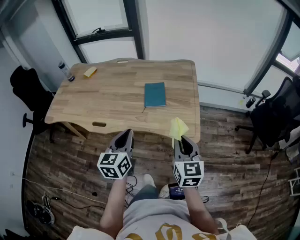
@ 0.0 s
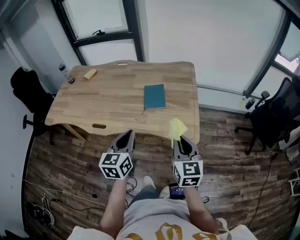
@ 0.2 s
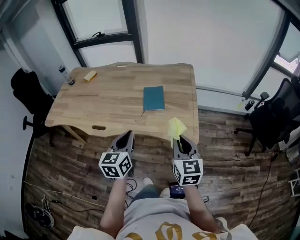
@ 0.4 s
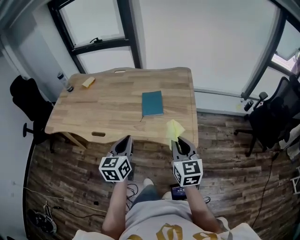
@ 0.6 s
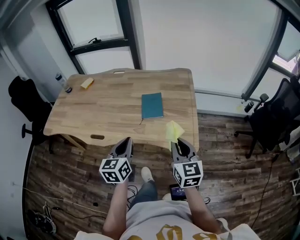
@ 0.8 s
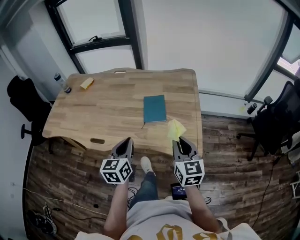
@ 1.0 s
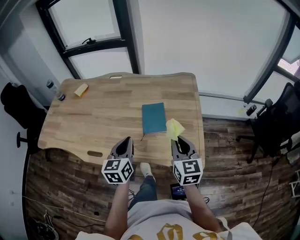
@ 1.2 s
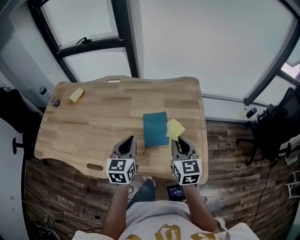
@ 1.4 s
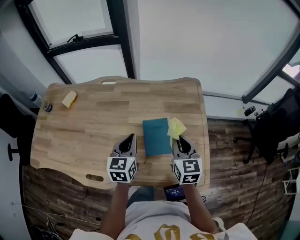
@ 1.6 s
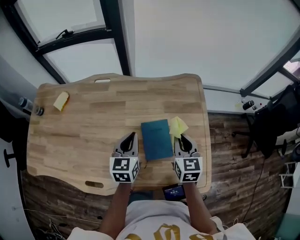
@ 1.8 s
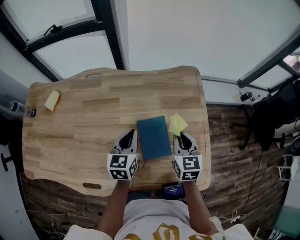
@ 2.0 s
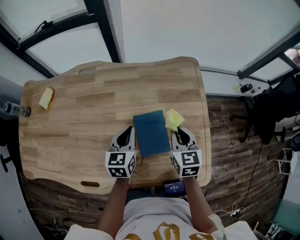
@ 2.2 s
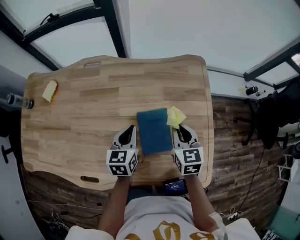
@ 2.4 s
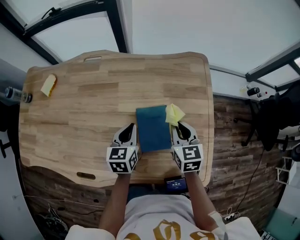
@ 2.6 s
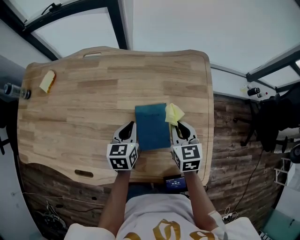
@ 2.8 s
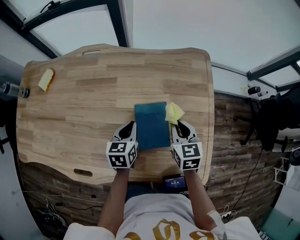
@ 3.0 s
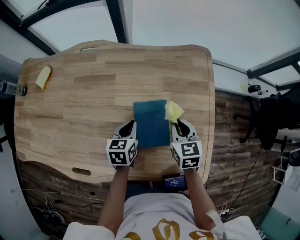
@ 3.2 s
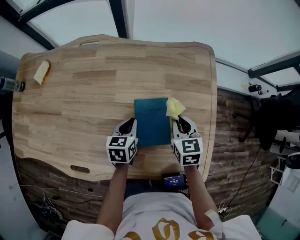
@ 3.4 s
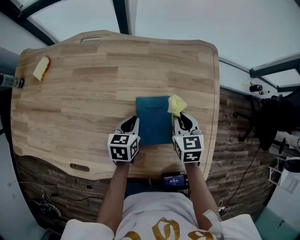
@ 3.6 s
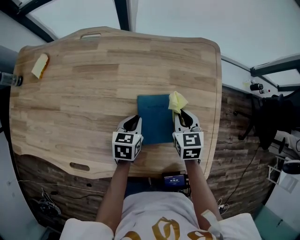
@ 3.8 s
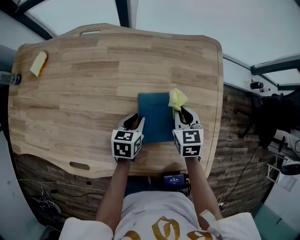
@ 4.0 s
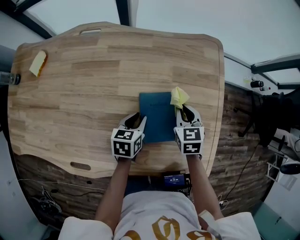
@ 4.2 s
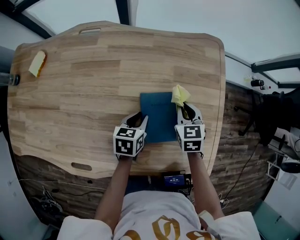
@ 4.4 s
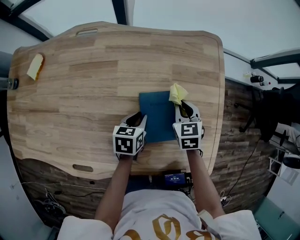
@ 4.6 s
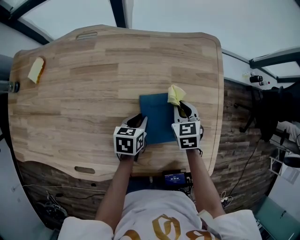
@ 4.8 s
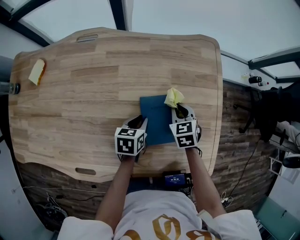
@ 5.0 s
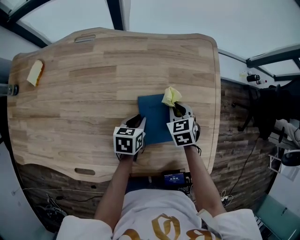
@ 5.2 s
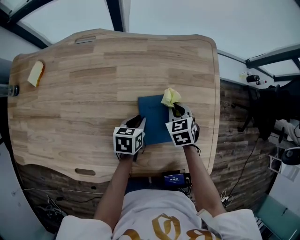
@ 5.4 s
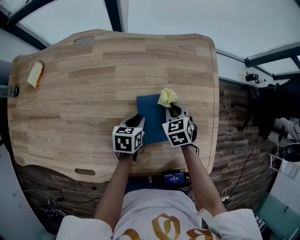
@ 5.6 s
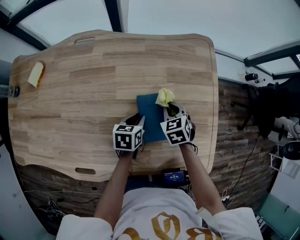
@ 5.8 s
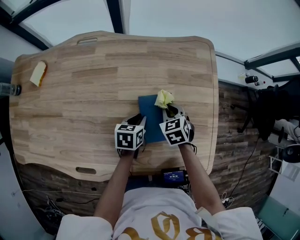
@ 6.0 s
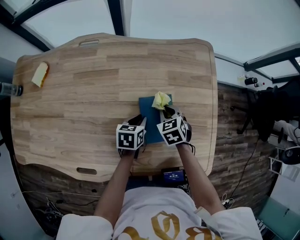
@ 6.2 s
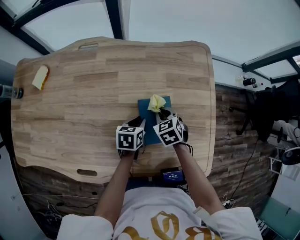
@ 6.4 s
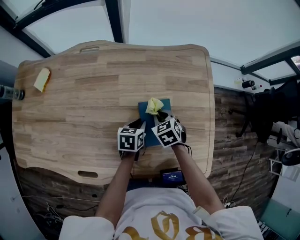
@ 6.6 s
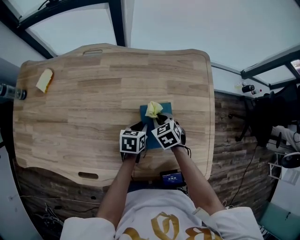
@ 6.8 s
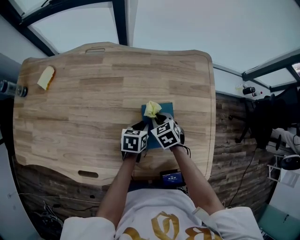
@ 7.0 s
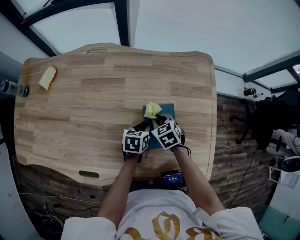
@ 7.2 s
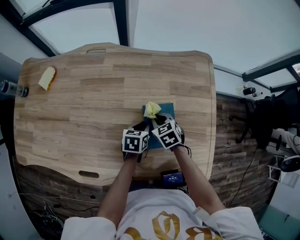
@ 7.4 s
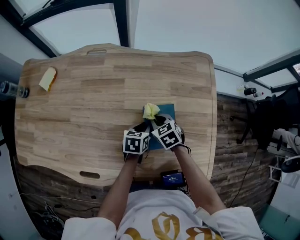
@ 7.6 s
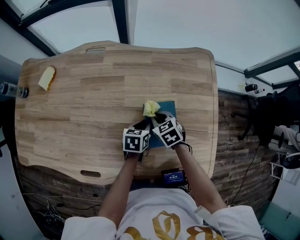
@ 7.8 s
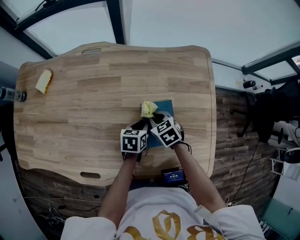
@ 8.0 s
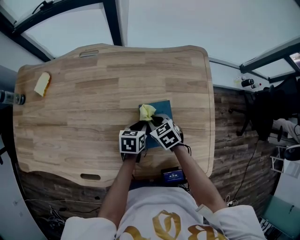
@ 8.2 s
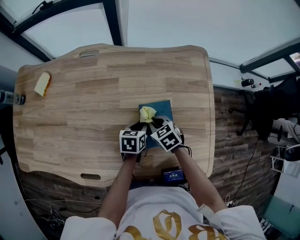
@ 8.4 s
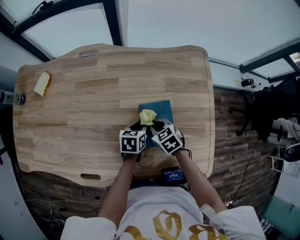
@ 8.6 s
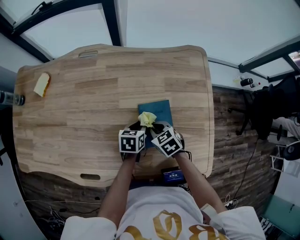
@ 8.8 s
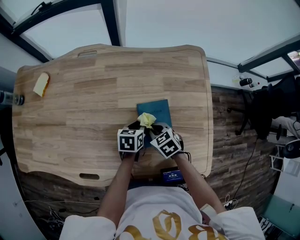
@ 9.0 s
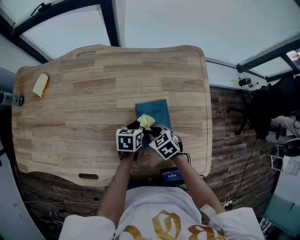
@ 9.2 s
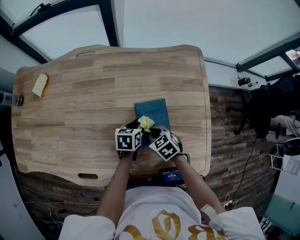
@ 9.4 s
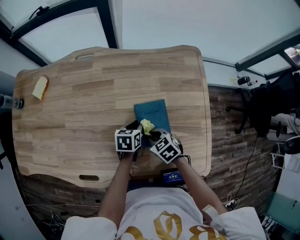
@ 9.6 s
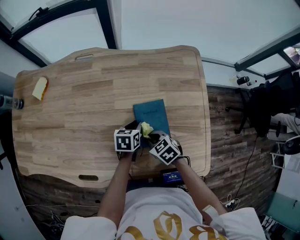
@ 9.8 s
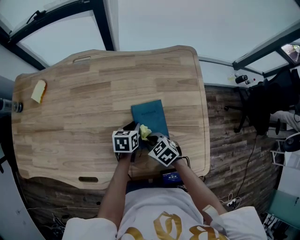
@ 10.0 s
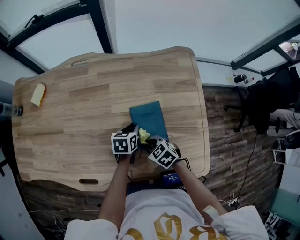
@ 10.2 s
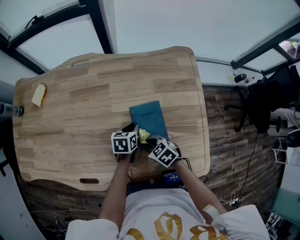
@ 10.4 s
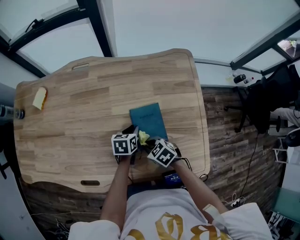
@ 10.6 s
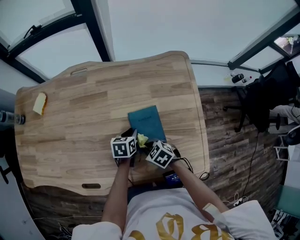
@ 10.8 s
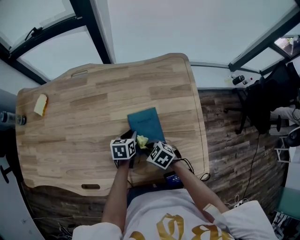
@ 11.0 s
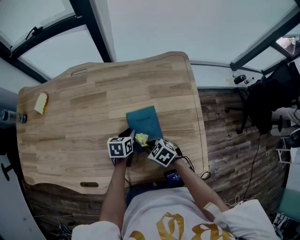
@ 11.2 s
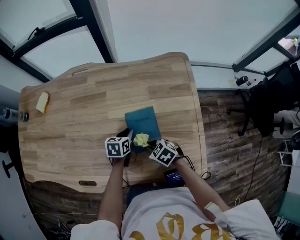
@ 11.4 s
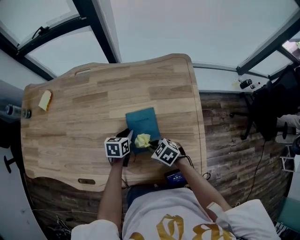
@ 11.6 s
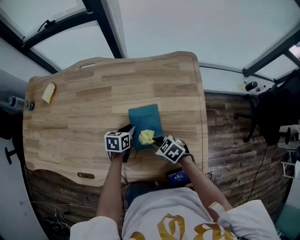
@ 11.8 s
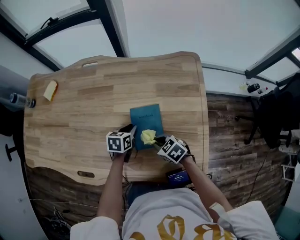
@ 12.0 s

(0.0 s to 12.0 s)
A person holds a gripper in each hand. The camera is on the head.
0.0 s - 1.6 s: Both grippers move forward, approximately 35 cm.
1.6 s - 3.0 s: The two grippers go some 15 cm downward and forward. The left gripper rotates approximately 20 degrees.
3.0 s - 4.4 s: The grippers both shift downward by some 5 cm. The left gripper opens up.
4.4 s - 6.0 s: The right gripper moves roughly 5 cm.
6.0 s - 7.6 s: The right gripper heads to the left, covering about 5 cm.
7.6 s - 9.0 s: The right gripper shifts roughly 5 cm backward.
9.0 s - 10.4 s: The right gripper travels backward by approximately 5 cm.
10.4 s - 12.0 s: The right gripper moves to the right, approximately 5 cm.

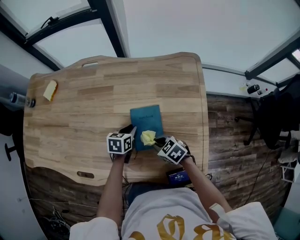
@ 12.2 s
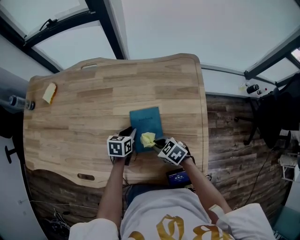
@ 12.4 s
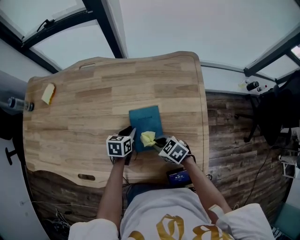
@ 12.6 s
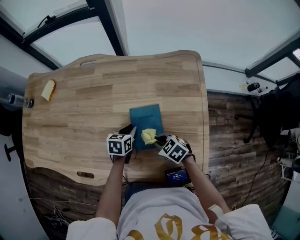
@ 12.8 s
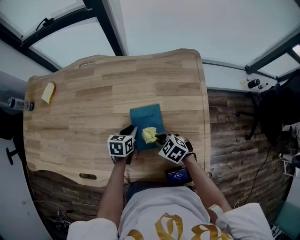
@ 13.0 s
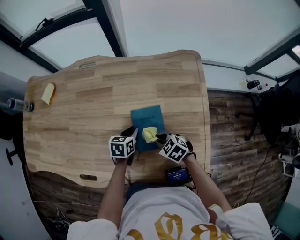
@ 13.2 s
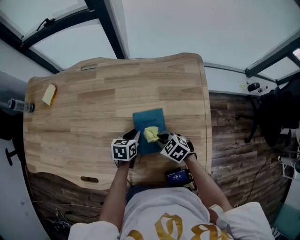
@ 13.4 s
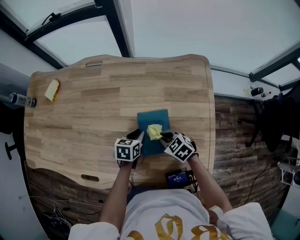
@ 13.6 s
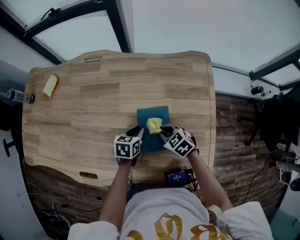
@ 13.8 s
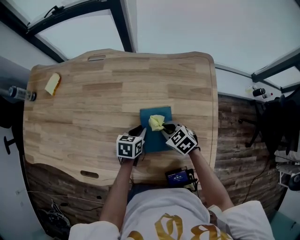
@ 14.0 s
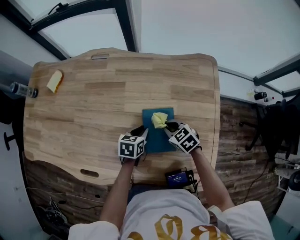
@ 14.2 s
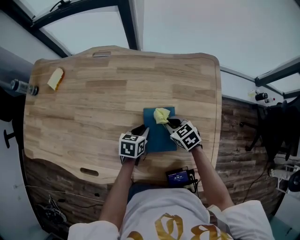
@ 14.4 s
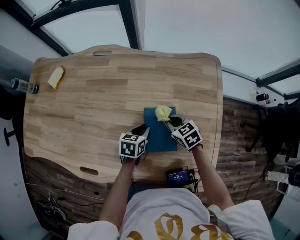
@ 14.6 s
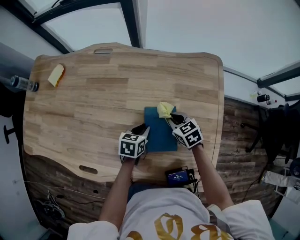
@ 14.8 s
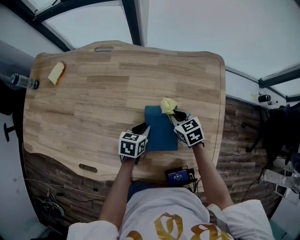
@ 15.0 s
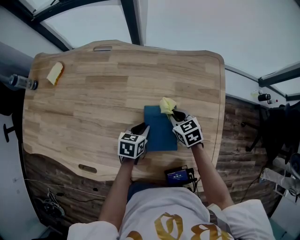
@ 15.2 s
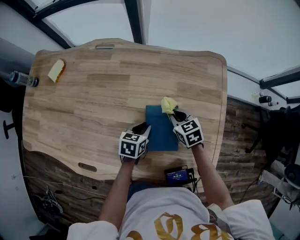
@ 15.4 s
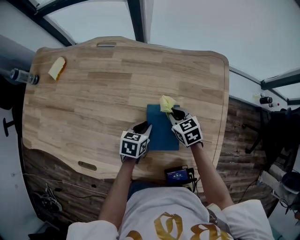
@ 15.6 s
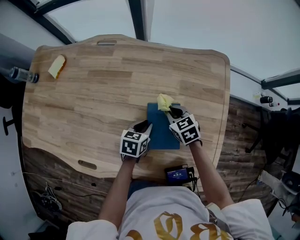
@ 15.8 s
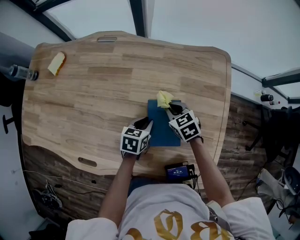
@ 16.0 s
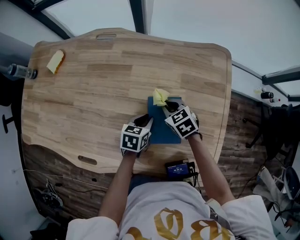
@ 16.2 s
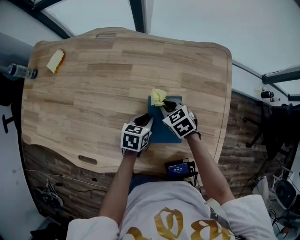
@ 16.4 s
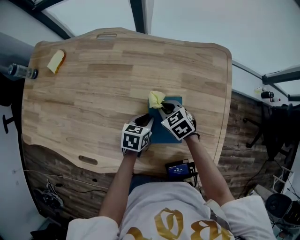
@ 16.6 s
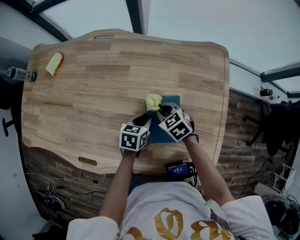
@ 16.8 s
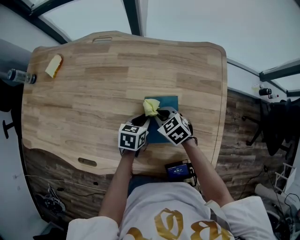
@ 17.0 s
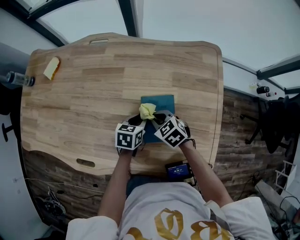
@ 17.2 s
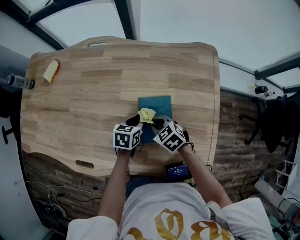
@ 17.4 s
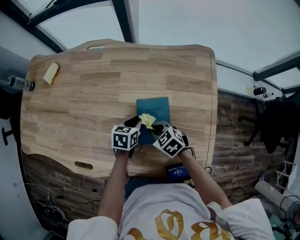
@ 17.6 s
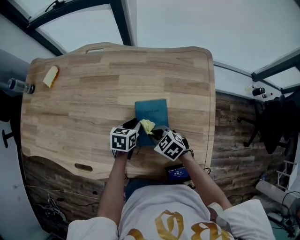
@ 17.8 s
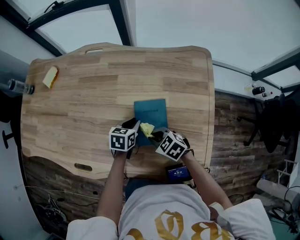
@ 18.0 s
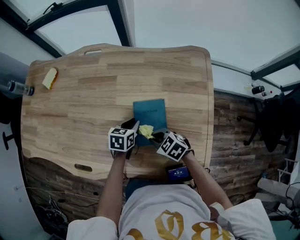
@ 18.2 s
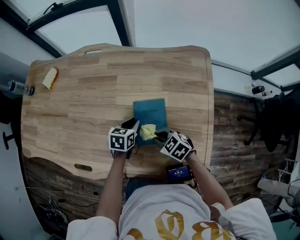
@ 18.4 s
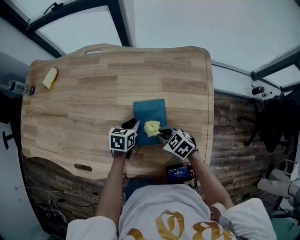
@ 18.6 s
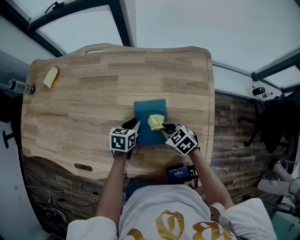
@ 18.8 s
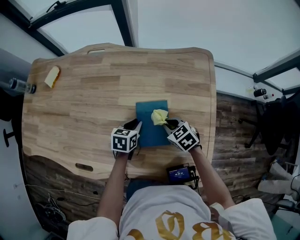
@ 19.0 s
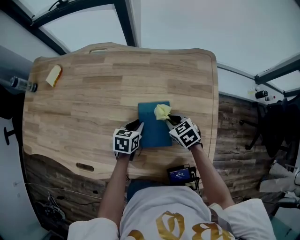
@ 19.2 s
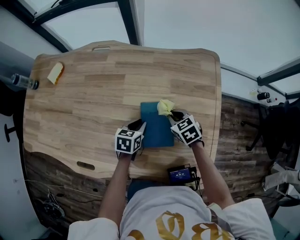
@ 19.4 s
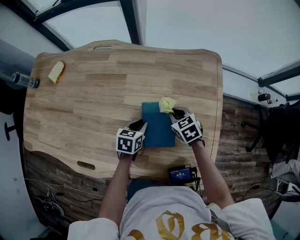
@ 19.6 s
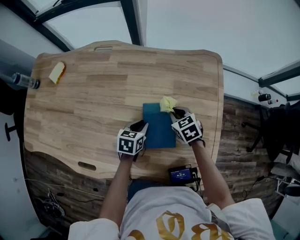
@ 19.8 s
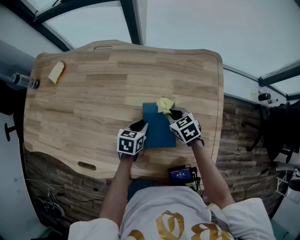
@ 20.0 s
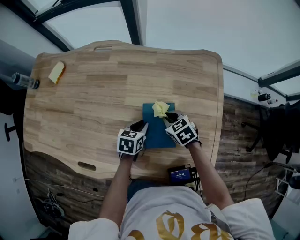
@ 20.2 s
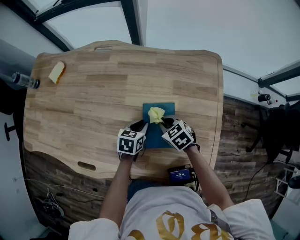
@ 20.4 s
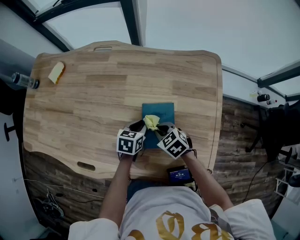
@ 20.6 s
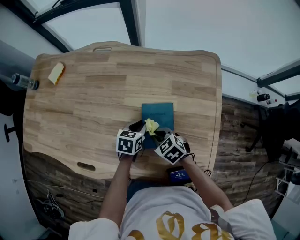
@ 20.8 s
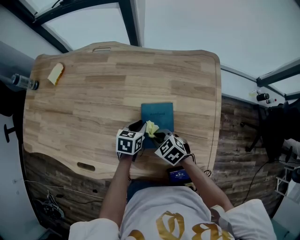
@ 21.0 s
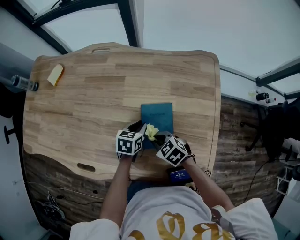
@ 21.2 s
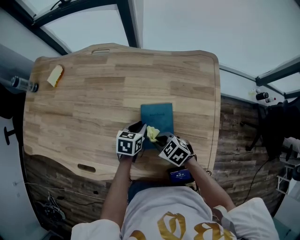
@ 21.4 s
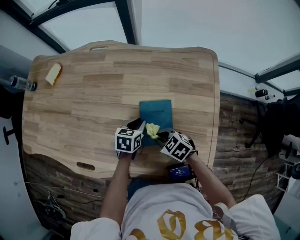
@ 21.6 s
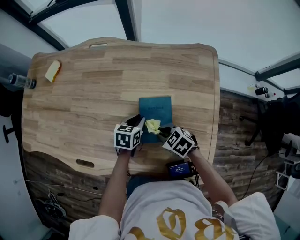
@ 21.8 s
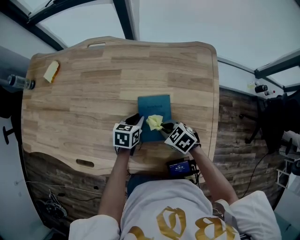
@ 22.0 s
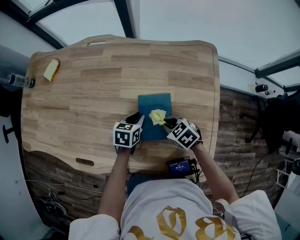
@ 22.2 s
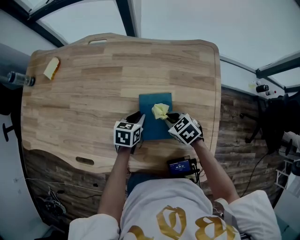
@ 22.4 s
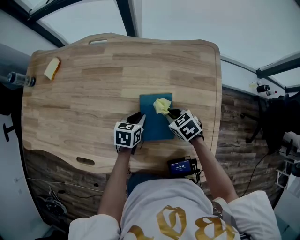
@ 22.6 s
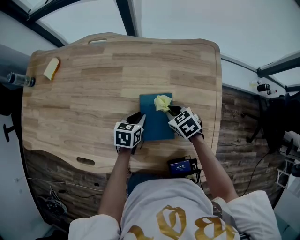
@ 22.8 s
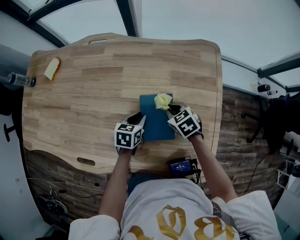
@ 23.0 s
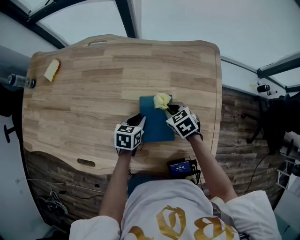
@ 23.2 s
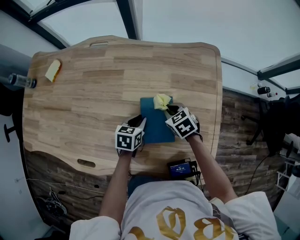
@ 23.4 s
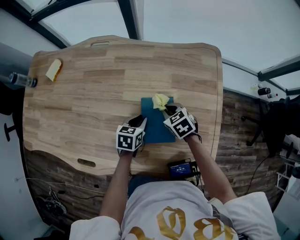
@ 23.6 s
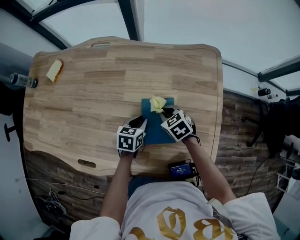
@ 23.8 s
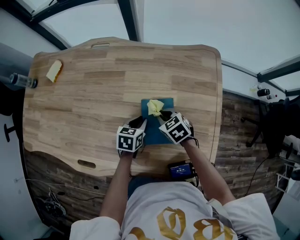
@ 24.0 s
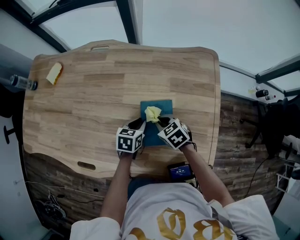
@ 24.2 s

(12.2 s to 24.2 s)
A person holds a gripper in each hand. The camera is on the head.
12.2 s - 13.8 s: The right gripper travels forward by about 5 cm.
13.8 s - 15.2 s: The right gripper moves forward, about 10 cm.
15.2 s - 16.6 s: The right gripper is displaced to the left by some 5 cm.
16.6 s - 18.2 s: The right gripper heads backward, covering approximately 15 cm.
18.2 s - 19.8 s: The right gripper goes approximately 15 cm forward and to the right, and rotates about 30 degrees.
19.8 s - 21.2 s: The right gripper moves backward and to the left, roughly 15 cm, and rotates approximately 20 degrees.
21.2 s - 22.6 s: The right gripper moves to the right and forward, roughly 10 cm.
22.6 s - 24.2 s: The grippers stay close to where they were, moving slightly.
